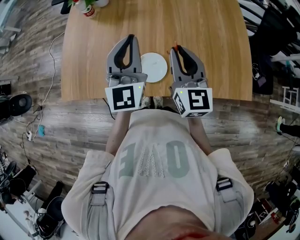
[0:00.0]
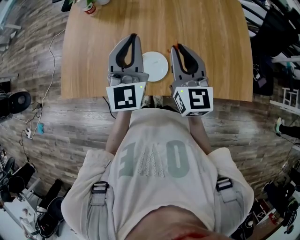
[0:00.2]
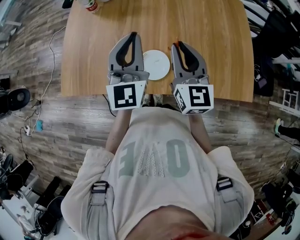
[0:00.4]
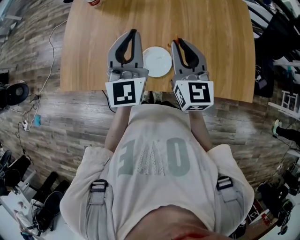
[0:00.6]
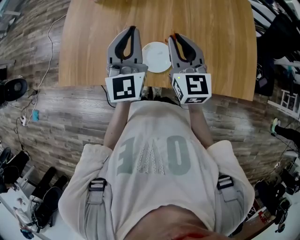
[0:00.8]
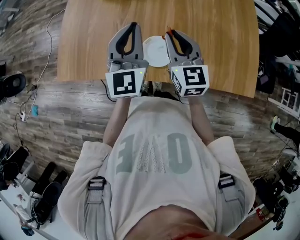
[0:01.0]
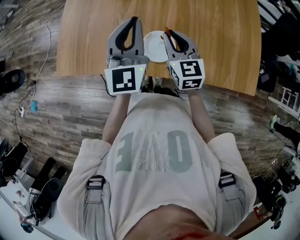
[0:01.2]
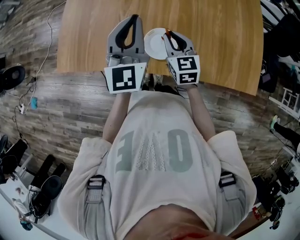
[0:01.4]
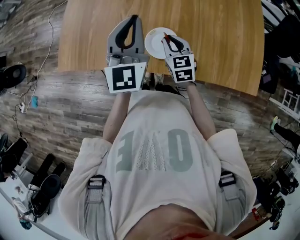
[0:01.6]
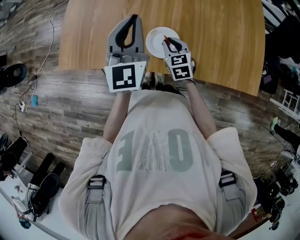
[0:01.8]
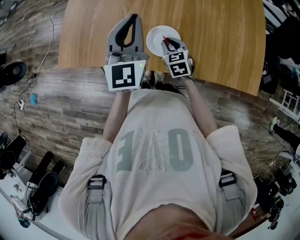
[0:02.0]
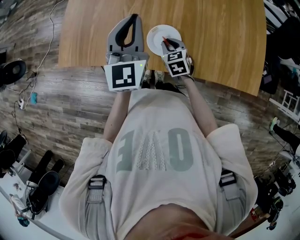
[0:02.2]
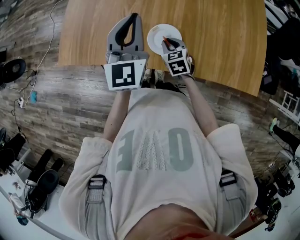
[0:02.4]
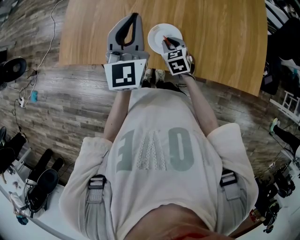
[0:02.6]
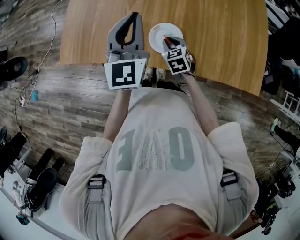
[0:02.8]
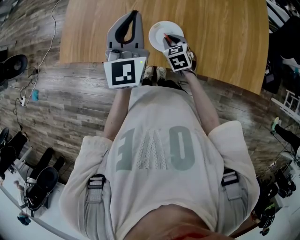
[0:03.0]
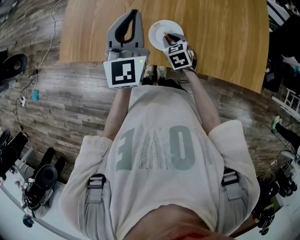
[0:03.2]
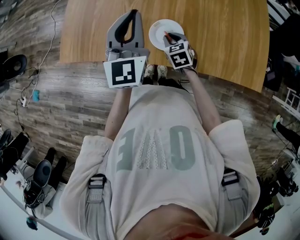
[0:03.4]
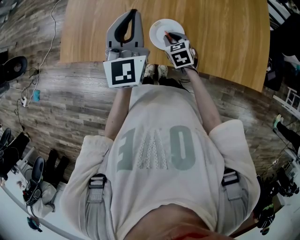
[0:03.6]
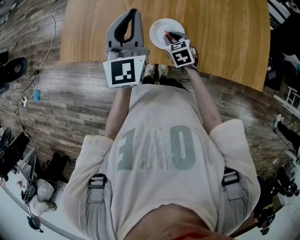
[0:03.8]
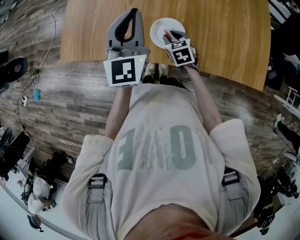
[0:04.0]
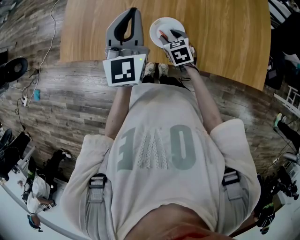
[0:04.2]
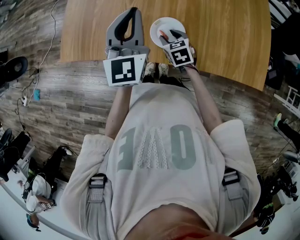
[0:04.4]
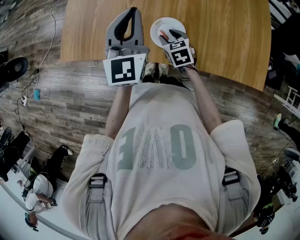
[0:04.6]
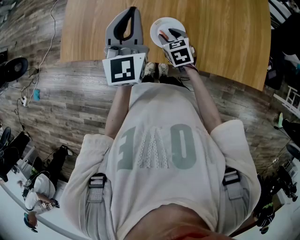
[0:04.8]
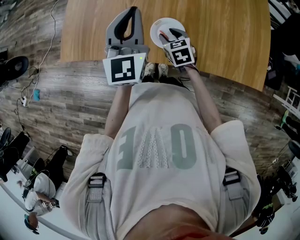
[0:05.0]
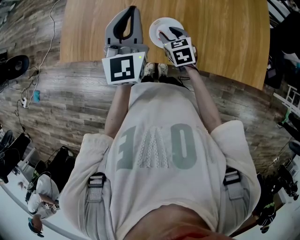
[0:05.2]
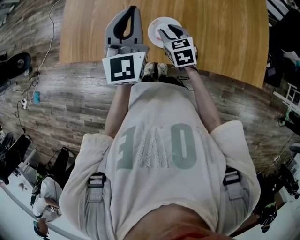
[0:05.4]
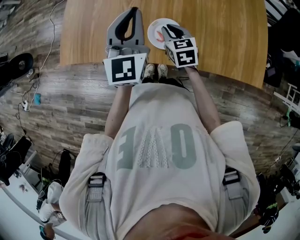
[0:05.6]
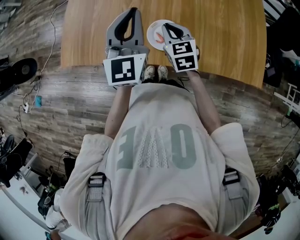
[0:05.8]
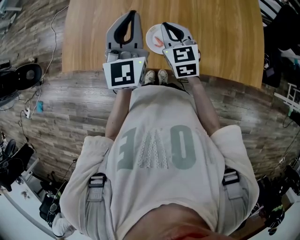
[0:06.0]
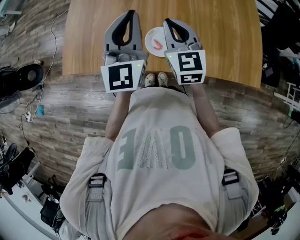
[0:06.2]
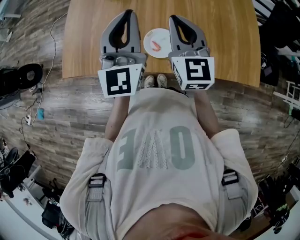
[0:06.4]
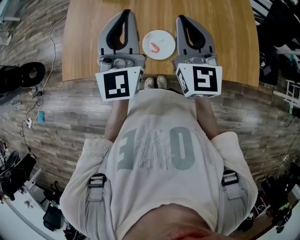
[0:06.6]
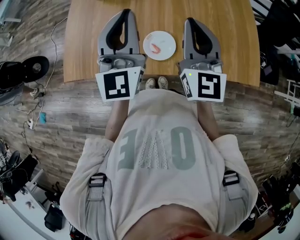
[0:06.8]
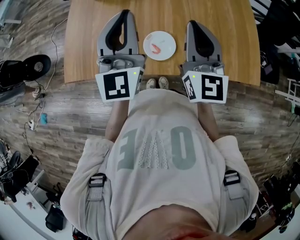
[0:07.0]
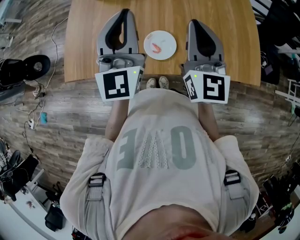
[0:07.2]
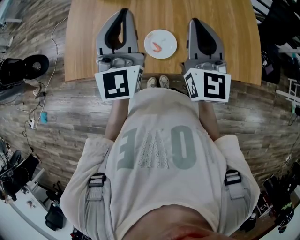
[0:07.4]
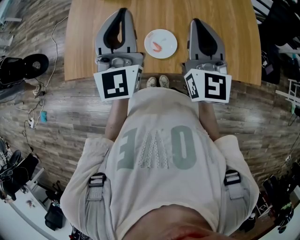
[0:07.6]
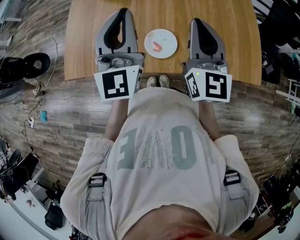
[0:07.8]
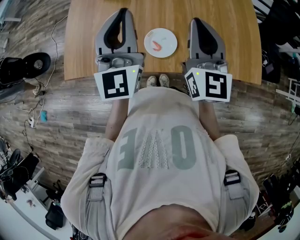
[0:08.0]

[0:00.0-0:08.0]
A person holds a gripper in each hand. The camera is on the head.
0.0 to 1.6 s: The right gripper is displaced downward by about 20 cm, and turns by some 30 degrees; the left gripper moves roughly 5 cm.
1.6 to 3.2 s: The right gripper shifts roughly 5 cm downward.
3.2 to 4.8 s: The right gripper opens up.
4.8 to 6.4 s: The right gripper moves upward, some 25 cm, tilts its fingers approximately 40 degrees upward, and closes its fingers; the left gripper is displaced upward by approximately 10 cm.
6.4 to 8.0 s: The right gripper is displaced to the right by some 5 cm.

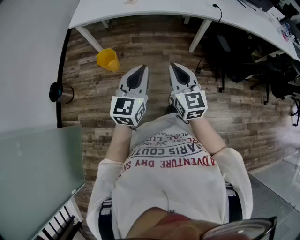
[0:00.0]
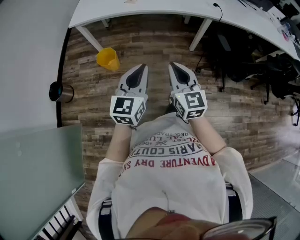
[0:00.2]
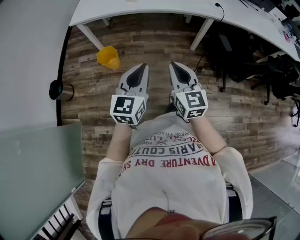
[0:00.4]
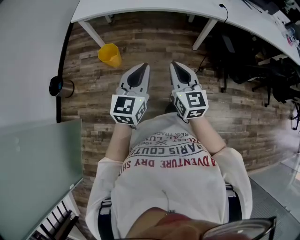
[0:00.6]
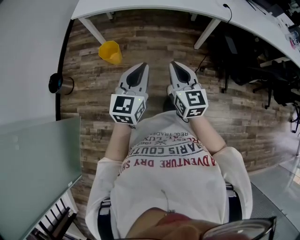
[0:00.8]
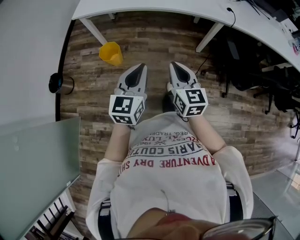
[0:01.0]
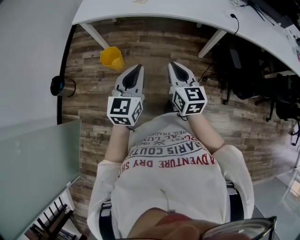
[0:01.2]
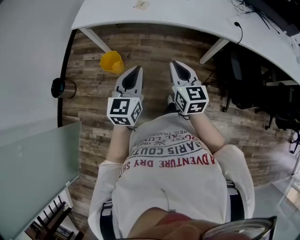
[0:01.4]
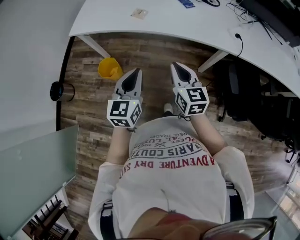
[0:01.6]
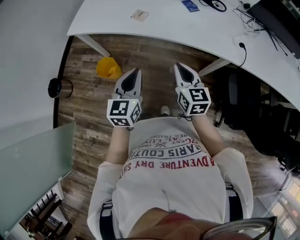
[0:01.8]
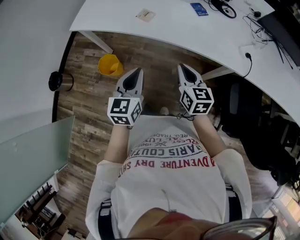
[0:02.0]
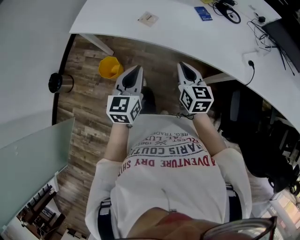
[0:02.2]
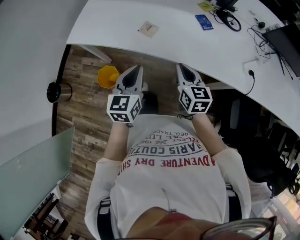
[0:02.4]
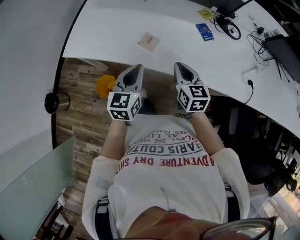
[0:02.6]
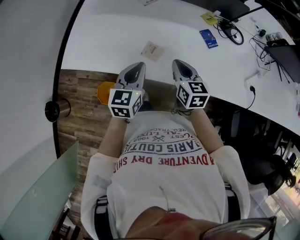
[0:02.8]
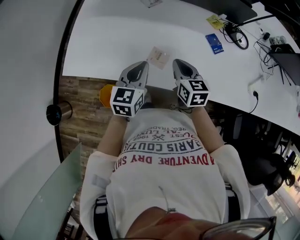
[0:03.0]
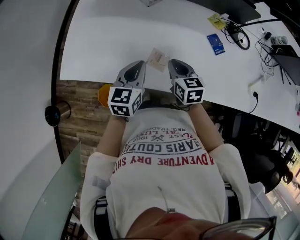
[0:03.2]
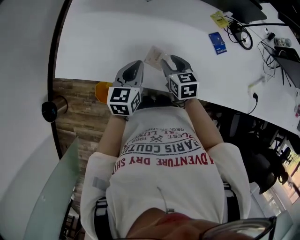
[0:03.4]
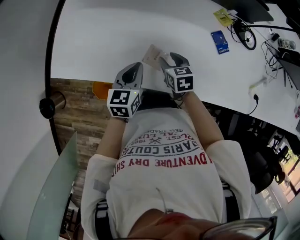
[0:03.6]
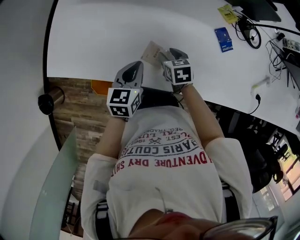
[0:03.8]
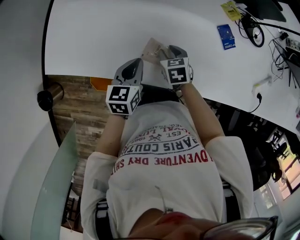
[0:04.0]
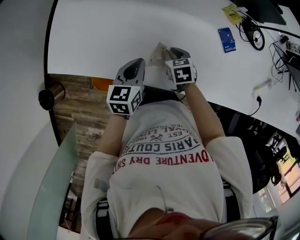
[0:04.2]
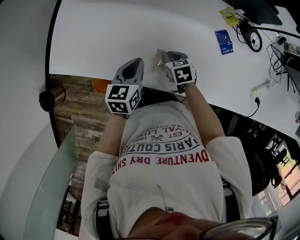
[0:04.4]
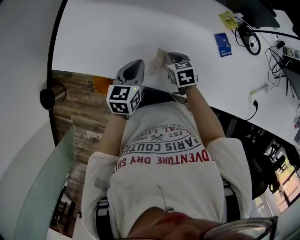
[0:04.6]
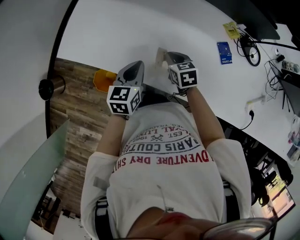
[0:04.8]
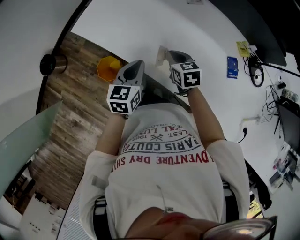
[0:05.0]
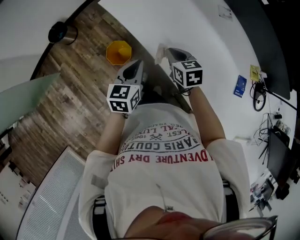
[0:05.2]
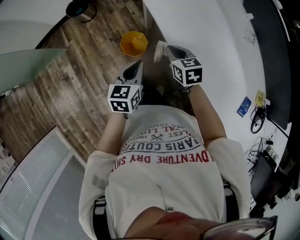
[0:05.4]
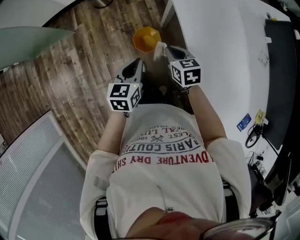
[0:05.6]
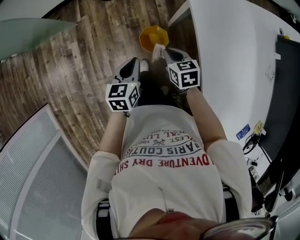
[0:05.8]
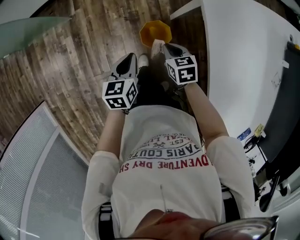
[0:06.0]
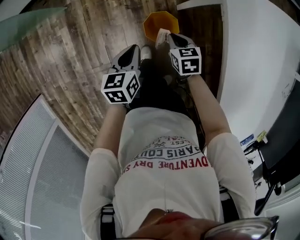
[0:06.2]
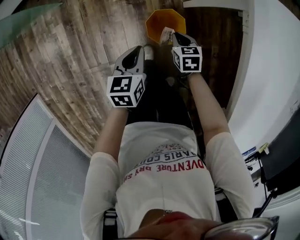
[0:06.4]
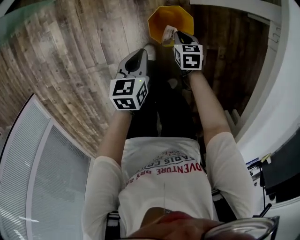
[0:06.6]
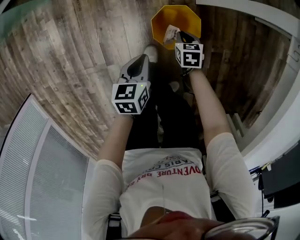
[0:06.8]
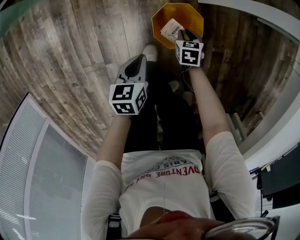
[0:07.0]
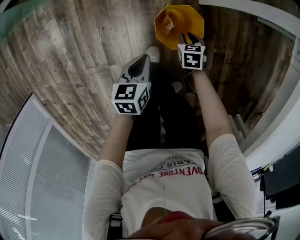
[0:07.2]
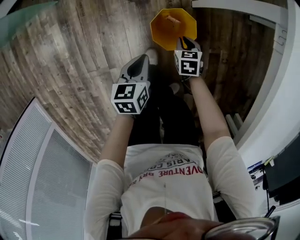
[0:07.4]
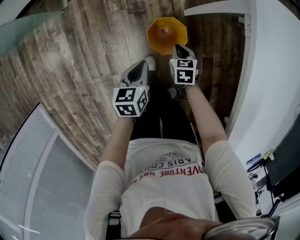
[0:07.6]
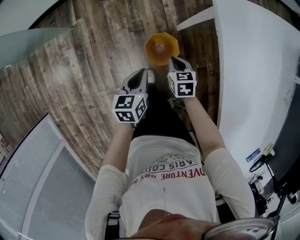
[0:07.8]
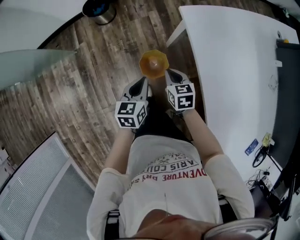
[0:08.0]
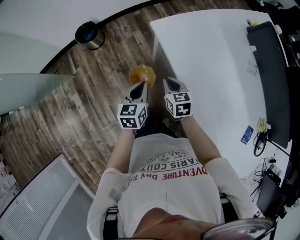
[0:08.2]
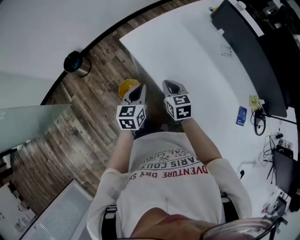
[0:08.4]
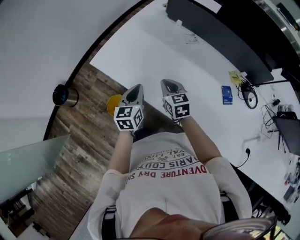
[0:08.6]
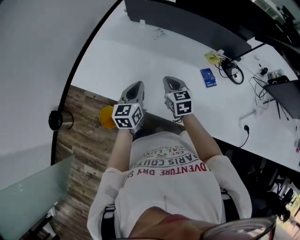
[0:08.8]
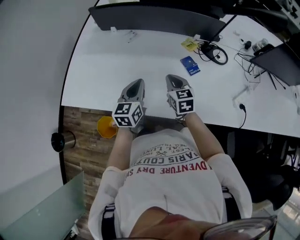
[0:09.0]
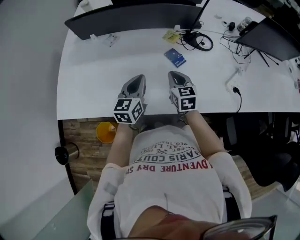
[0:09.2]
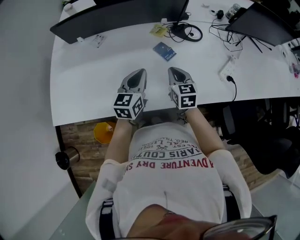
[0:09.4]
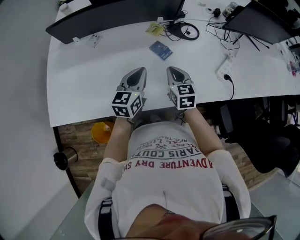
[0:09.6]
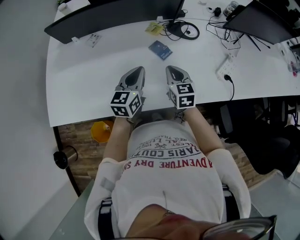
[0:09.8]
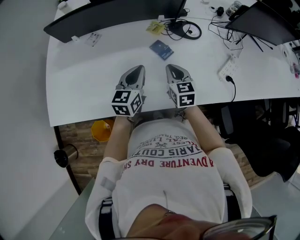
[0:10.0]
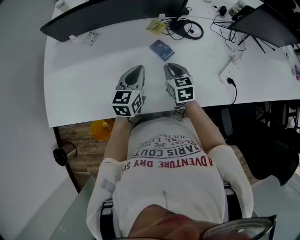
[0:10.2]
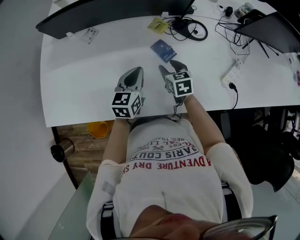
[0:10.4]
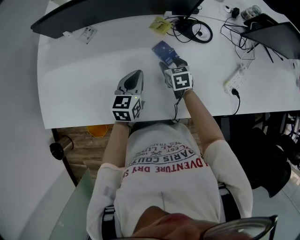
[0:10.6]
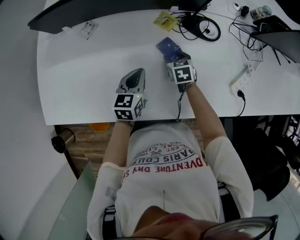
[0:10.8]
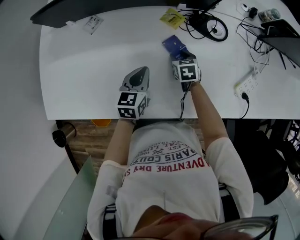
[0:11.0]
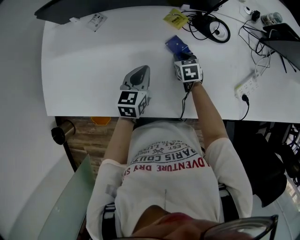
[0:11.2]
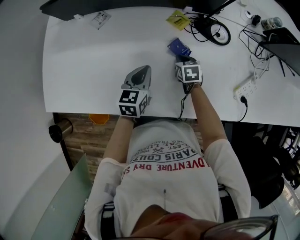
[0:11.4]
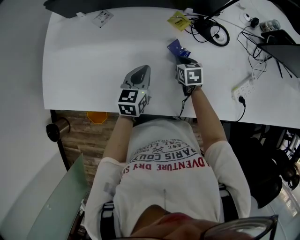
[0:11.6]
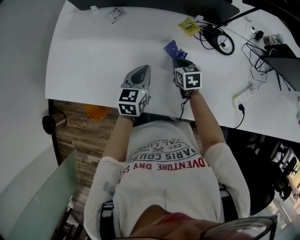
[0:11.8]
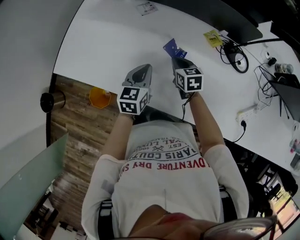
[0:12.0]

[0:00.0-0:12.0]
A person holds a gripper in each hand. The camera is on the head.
0.0 to 1.6 s: The two grippers go roughly 30 cm forward.
1.6 to 3.0 s: The two grippers travel together, forward, some 50 cm.
3.0 to 4.4 s: The right gripper moves downward, approximately 15 cm, swivels approximately 30 degrees, and opens, then closes again. Meanwhile the left gripper goes roughly 10 cm downward and forward.
4.4 to 6.0 s: Both grippers are carried about 50 cm. The right gripper changes its angle by some 60 degrees; the left gripper changes its angle by roughly 70 degrees.
6.0 to 7.6 s: The grippers both shift downward by some 25 cm.
7.6 to 9.0 s: The pair of grippers is taken approximately 60 cm. The right gripper angles its fingers upward, by approximately 30 degrees, while the left gripper swivels approximately 80 degrees.
9.0 to 10.4 s: The left gripper moves to the right, forward and downward, some 15 cm; the right gripper travels to the right, downward and forward by approximately 20 cm, and opens its fingers.
10.4 to 12.0 s: The left gripper moves roughly 15 cm, and swivels about 20 degrees. Meanwhile the right gripper travels downward and back again, some 10 cm each way, rotates about 20 degrees, and closes its fingers.

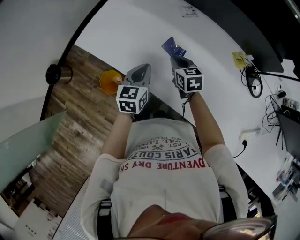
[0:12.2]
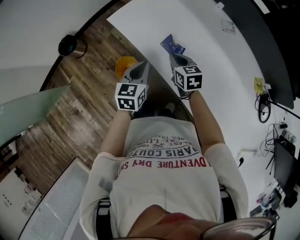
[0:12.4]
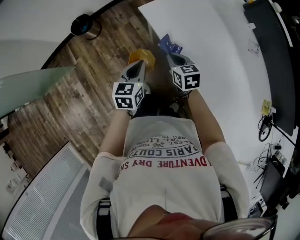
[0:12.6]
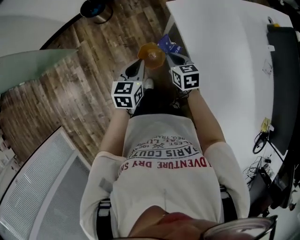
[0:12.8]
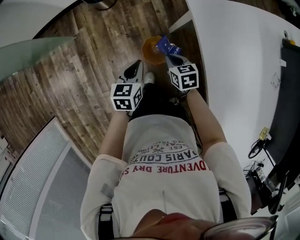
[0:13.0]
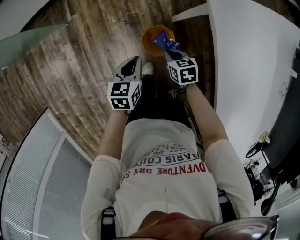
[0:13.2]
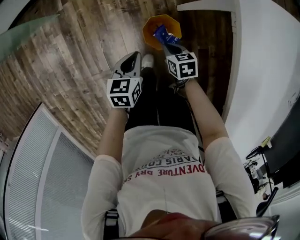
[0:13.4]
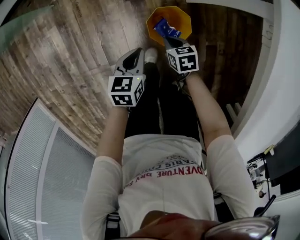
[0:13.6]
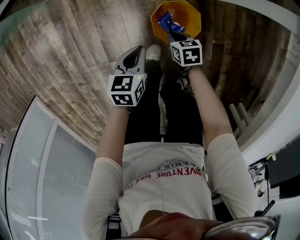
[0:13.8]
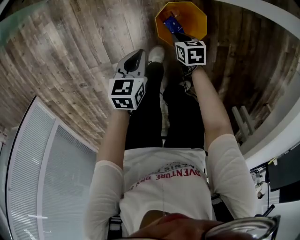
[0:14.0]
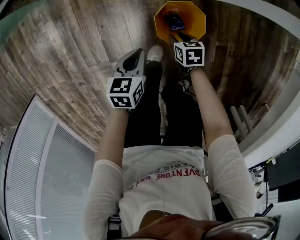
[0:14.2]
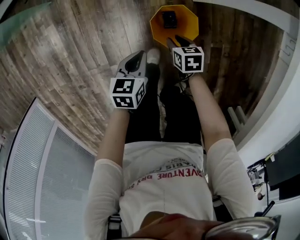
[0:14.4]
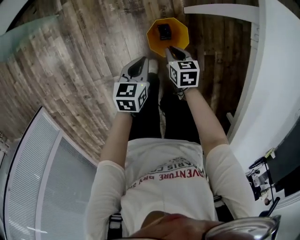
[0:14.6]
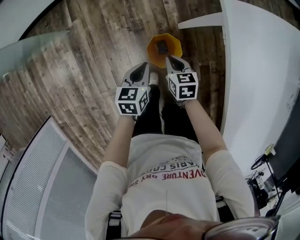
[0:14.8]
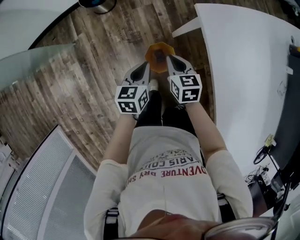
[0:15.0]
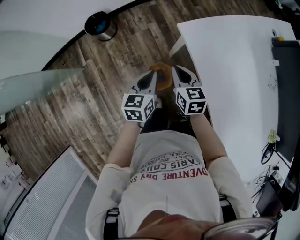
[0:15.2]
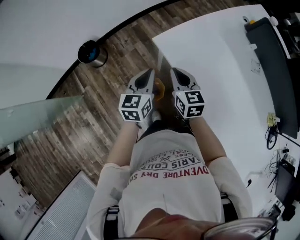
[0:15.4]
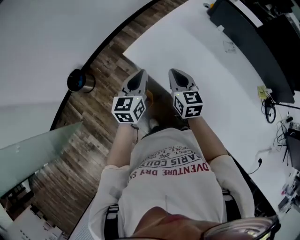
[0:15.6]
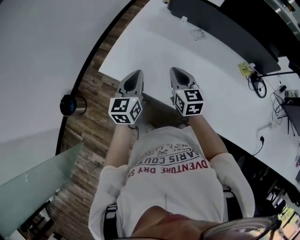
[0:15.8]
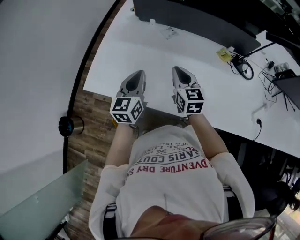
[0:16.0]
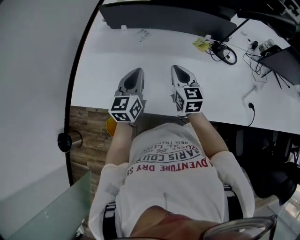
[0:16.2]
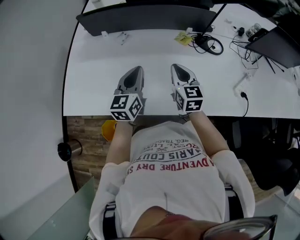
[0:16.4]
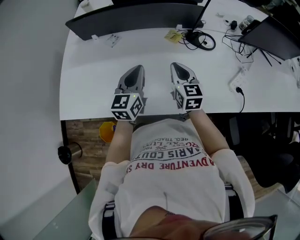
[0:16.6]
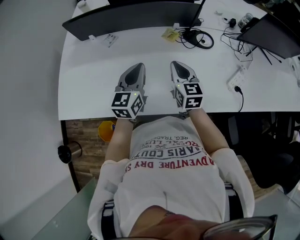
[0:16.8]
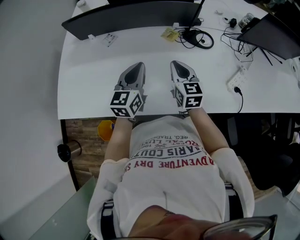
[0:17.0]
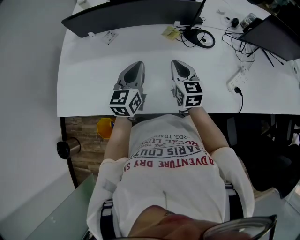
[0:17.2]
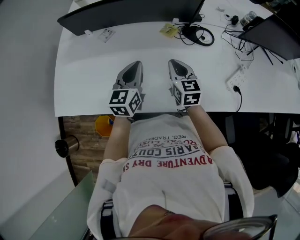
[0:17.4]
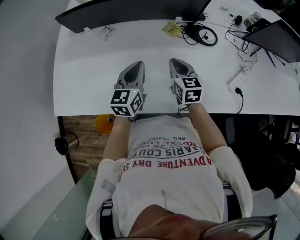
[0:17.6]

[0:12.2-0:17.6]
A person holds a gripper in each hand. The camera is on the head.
12.2 to 13.6 s: The pair of grippers is taken approximately 50 cm. The left gripper turns by about 60 degrees, while the right gripper changes its angle by some 60 degrees.
13.6 to 15.0 s: Both grippers move upward, about 25 cm. The right gripper changes its angle by roughly 30 degrees, and opens and closes again.
15.0 to 16.2 s: The pair of grippers is taken about 60 cm. The right gripper changes its angle by roughly 70 degrees; the left gripper rotates about 70 degrees.
16.2 to 17.6 s: The left gripper moves to the right, approximately 20 cm. The right gripper shifts some 20 cm to the right and downward.
